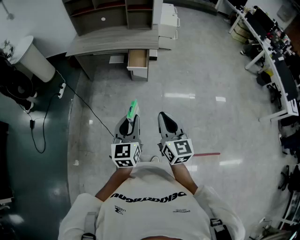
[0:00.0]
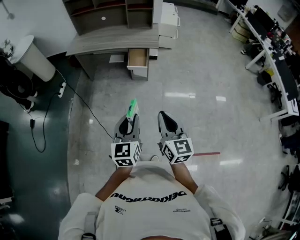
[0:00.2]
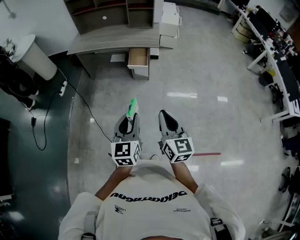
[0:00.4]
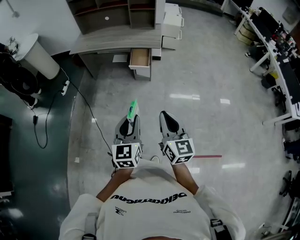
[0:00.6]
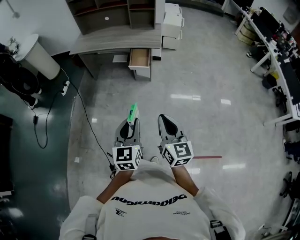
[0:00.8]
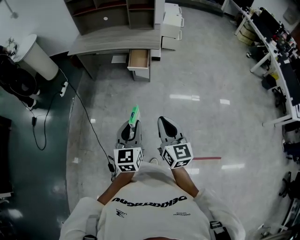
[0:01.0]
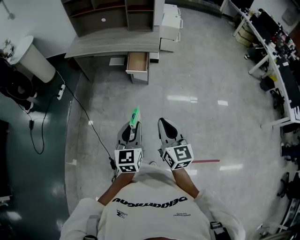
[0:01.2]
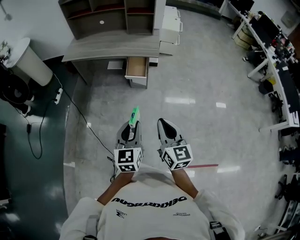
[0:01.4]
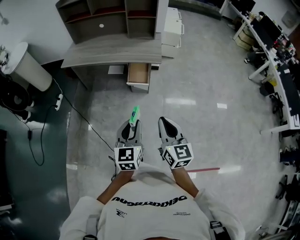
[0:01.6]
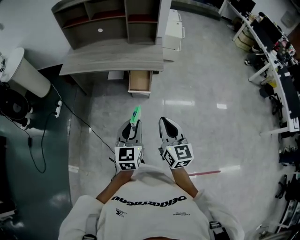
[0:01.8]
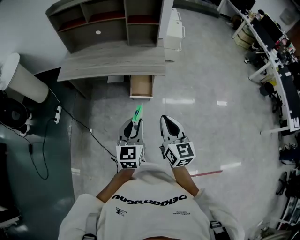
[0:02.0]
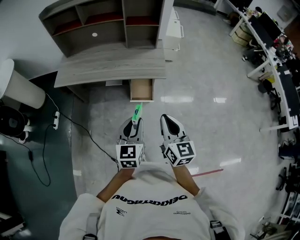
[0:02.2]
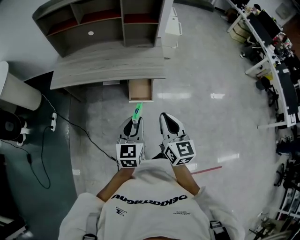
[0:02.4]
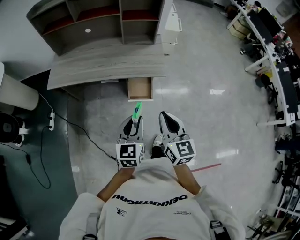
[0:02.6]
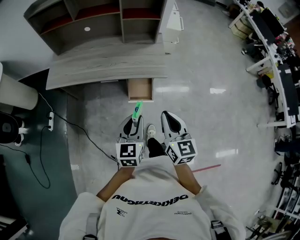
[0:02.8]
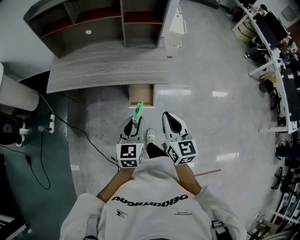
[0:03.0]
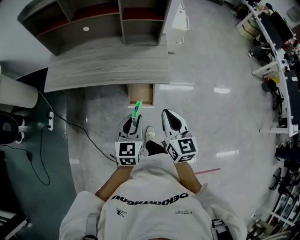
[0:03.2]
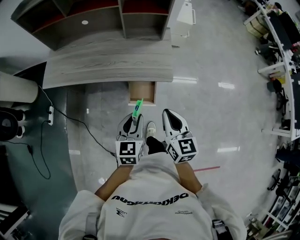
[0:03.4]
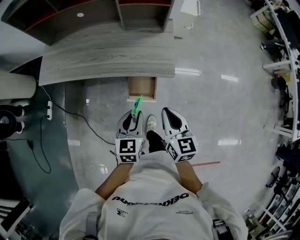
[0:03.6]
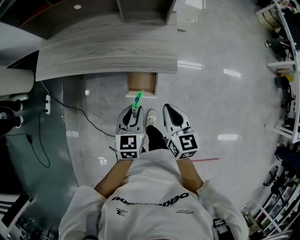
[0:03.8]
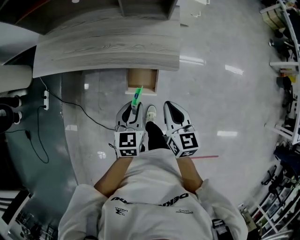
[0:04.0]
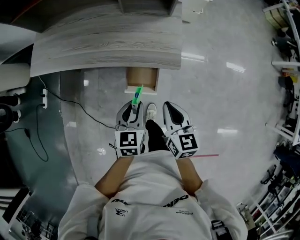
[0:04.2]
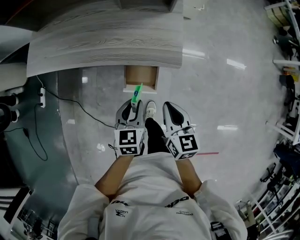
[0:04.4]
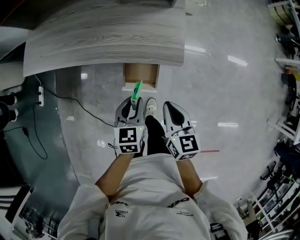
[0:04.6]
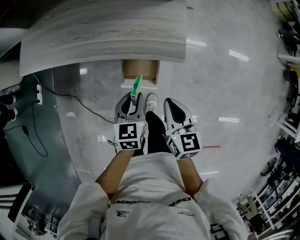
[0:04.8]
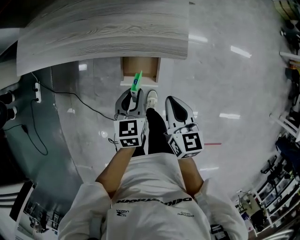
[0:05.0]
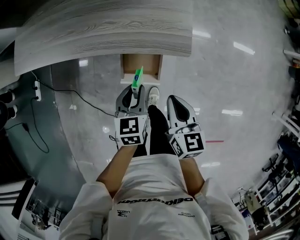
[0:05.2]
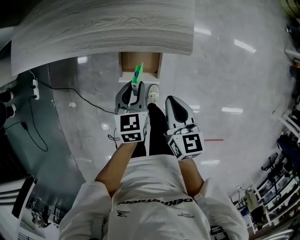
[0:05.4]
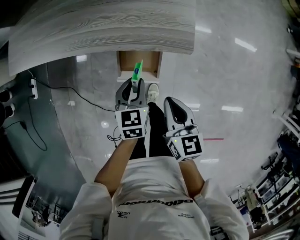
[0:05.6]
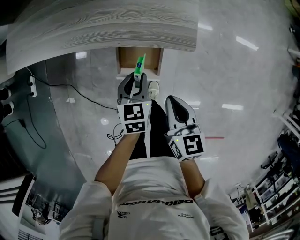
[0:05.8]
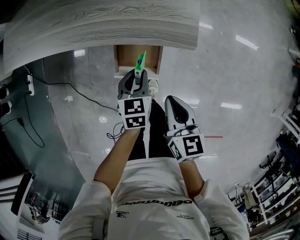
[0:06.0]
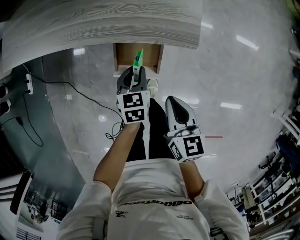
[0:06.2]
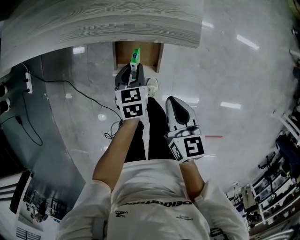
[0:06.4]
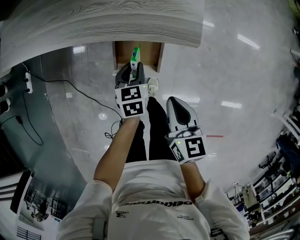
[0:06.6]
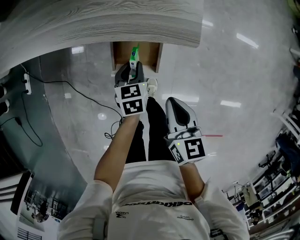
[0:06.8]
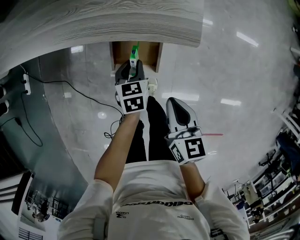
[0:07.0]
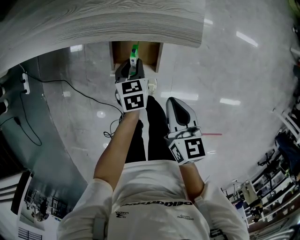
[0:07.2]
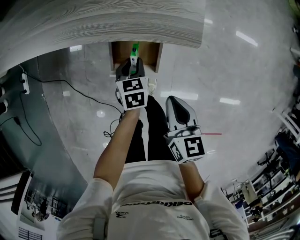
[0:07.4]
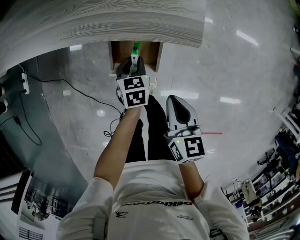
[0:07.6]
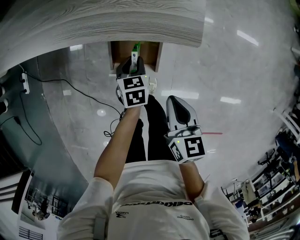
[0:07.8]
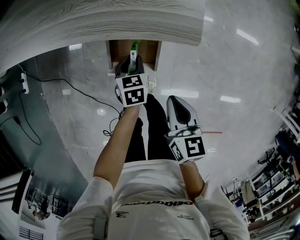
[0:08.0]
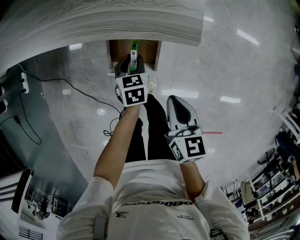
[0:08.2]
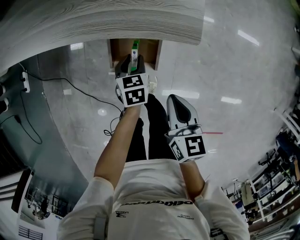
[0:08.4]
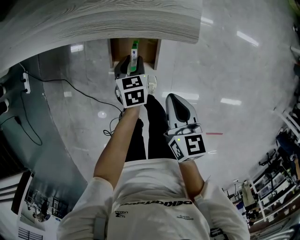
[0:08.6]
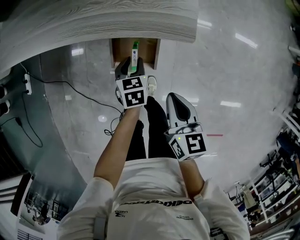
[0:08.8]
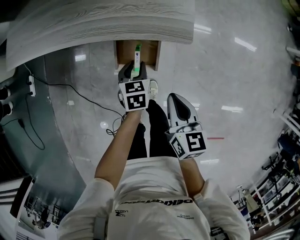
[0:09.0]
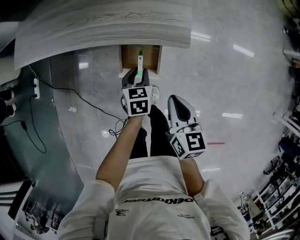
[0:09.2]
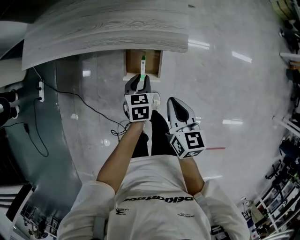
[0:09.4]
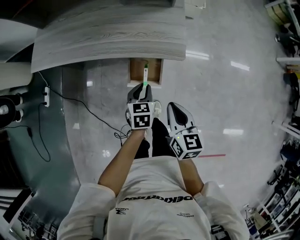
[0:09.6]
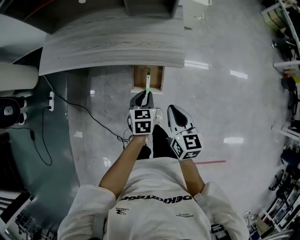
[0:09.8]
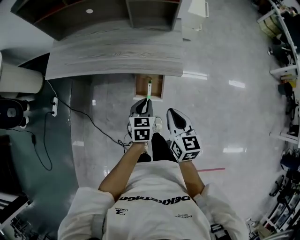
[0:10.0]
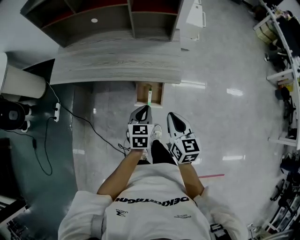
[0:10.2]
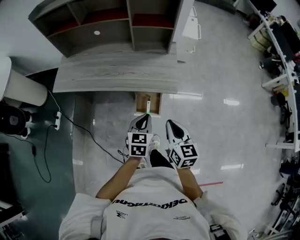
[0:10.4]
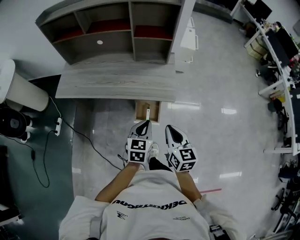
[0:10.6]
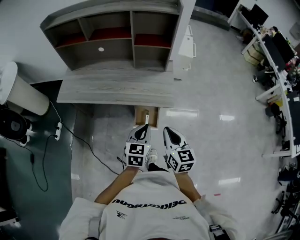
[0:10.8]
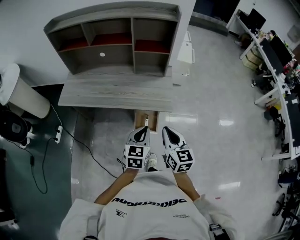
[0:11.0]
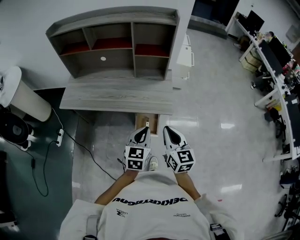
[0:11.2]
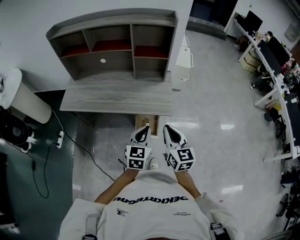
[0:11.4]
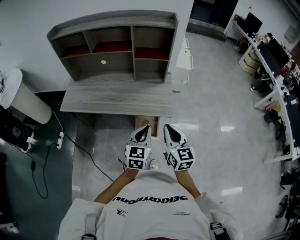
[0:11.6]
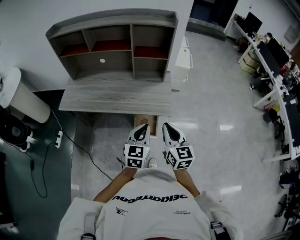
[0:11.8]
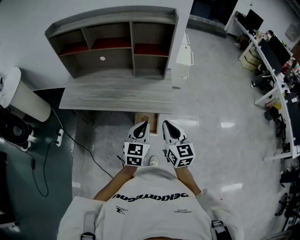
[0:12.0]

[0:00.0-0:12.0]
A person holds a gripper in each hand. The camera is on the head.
0.0 to 1.6 s: The two grippers go approximately 20 cm forward.
1.6 to 3.0 s: Both grippers travel together forward, roughly 35 cm.
3.0 to 4.4 s: Both grippers travel together downward and forward, approximately 20 cm.
4.4 to 6.0 s: The grippers both shift downward by approximately 15 cm.
6.0 to 7.6 s: The left gripper goes approximately 10 cm downward.
7.6 to 9.0 s: The left gripper travels upward by approximately 5 cm.
9.0 to 10.4 s: Both grippers travel together upward, approximately 30 cm. The left gripper turns by some 20 degrees, and closes its fingers.
10.4 to 12.0 s: Both grippers travel together upward, some 10 cm.

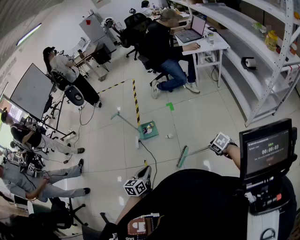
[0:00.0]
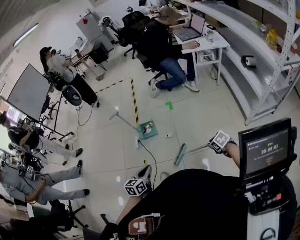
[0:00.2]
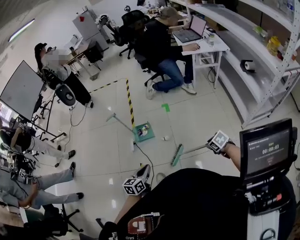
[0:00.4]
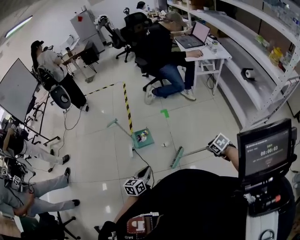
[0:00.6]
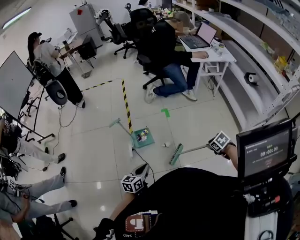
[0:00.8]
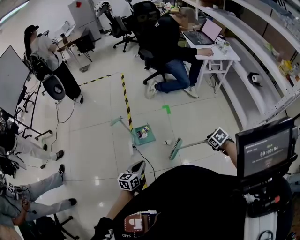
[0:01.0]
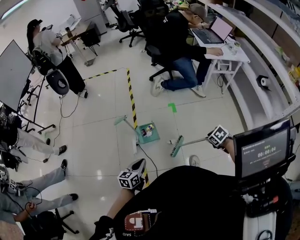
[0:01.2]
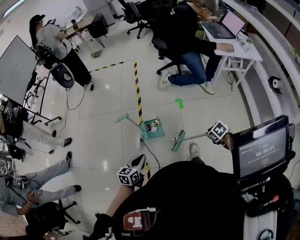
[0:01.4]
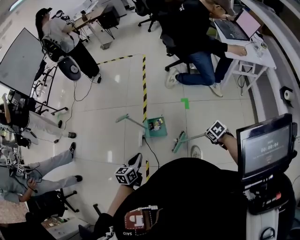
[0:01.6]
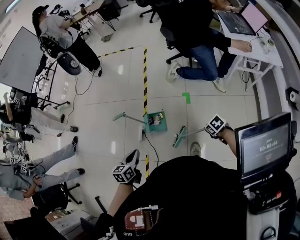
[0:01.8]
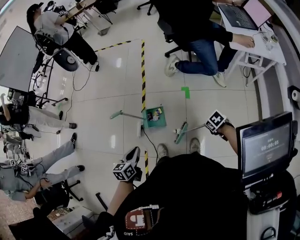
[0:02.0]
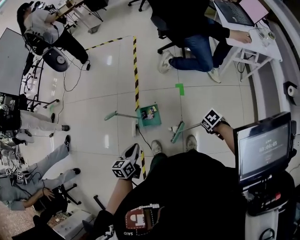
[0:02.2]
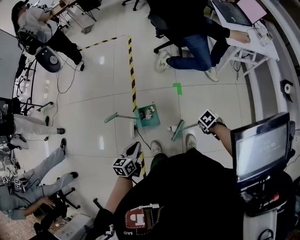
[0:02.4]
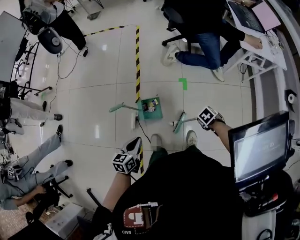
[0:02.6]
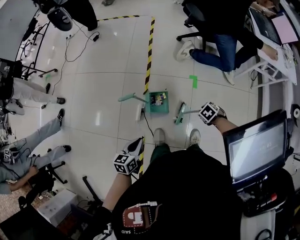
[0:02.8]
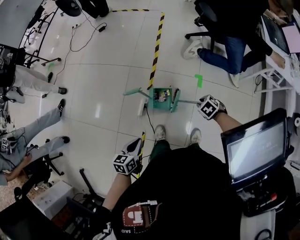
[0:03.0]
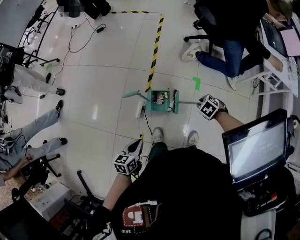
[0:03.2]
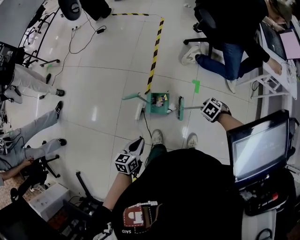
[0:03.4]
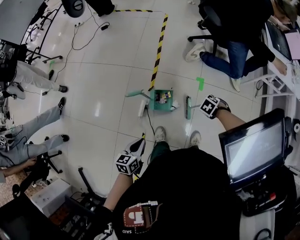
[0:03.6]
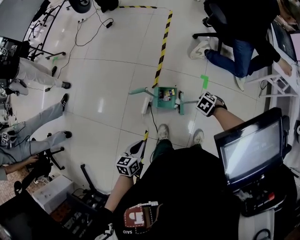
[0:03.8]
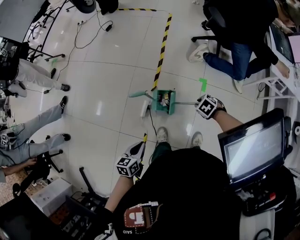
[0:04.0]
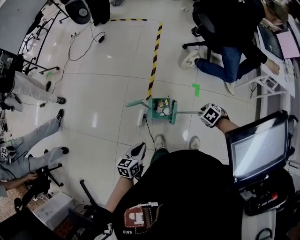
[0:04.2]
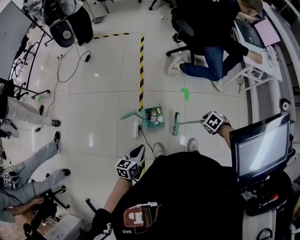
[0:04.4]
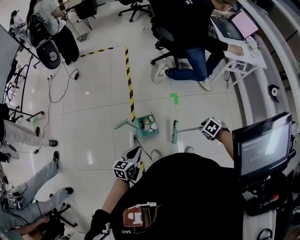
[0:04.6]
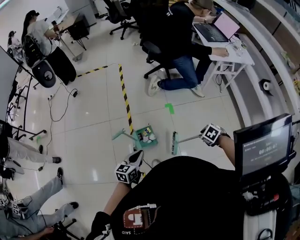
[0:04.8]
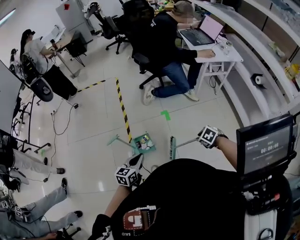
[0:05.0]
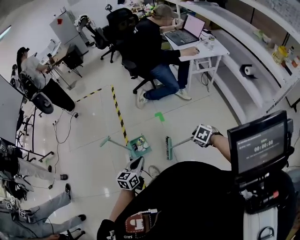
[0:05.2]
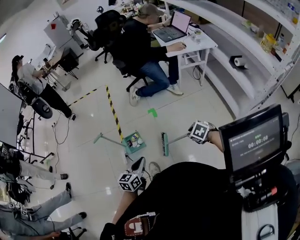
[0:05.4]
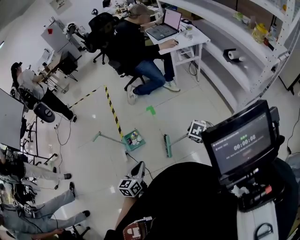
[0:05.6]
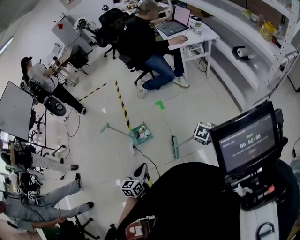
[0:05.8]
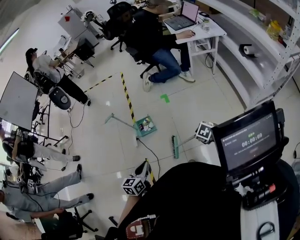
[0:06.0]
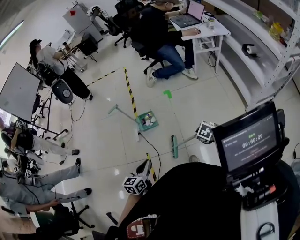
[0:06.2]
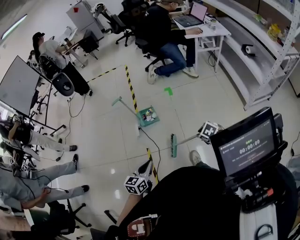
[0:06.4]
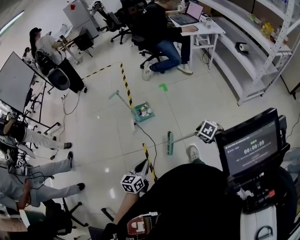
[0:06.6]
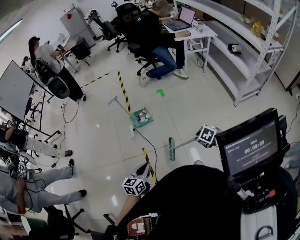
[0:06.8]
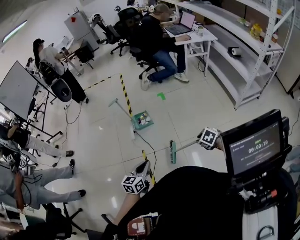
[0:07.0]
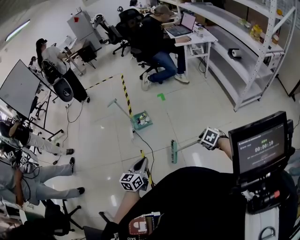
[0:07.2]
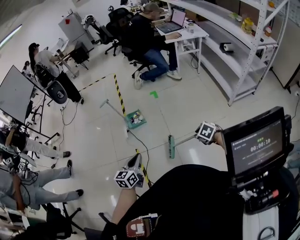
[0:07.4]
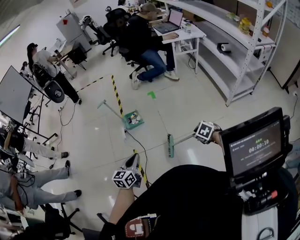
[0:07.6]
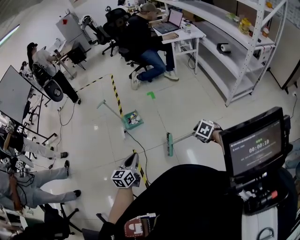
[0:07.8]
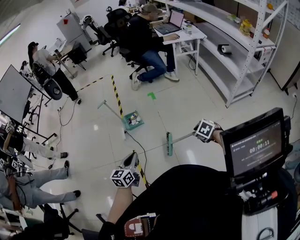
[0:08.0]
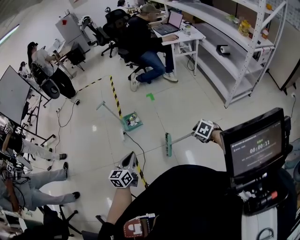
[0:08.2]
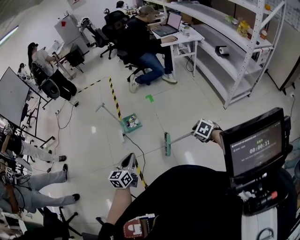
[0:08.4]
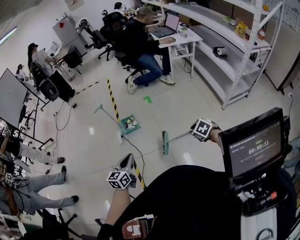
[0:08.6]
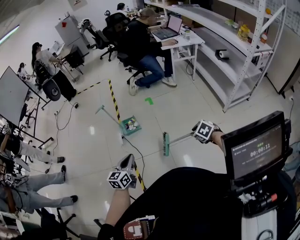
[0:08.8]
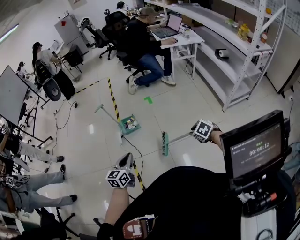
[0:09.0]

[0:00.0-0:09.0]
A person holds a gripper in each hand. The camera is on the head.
0.0 to 1.6 s: The left gripper changes place by roughly 40 cm.
1.6 to 3.0 s: The left gripper changes place by some 15 cm.
3.0 to 4.4 s: The left gripper shifts by roughly 5 cm.
4.4 to 6.0 s: The left gripper ends up roughly 40 cm from where it was.
6.0 to 7.6 s: The left gripper moves roughly 20 cm.
7.6 to 9.0 s: The left gripper moves about 5 cm.

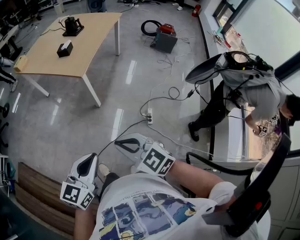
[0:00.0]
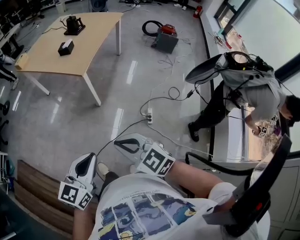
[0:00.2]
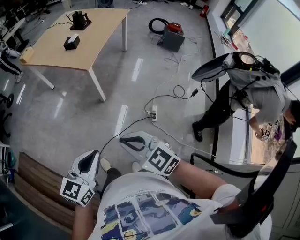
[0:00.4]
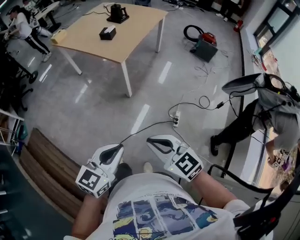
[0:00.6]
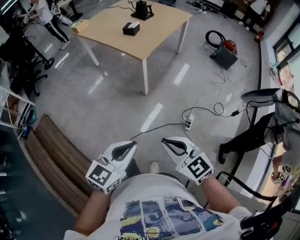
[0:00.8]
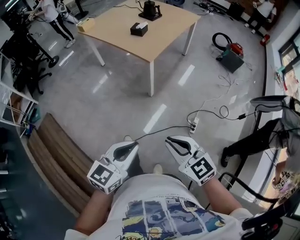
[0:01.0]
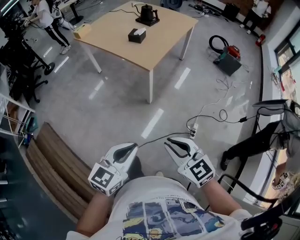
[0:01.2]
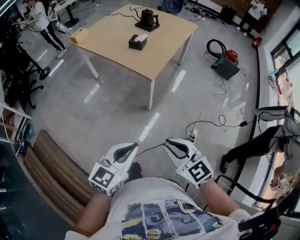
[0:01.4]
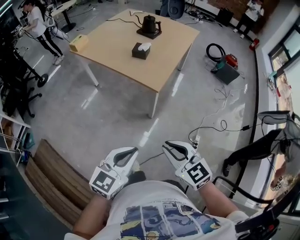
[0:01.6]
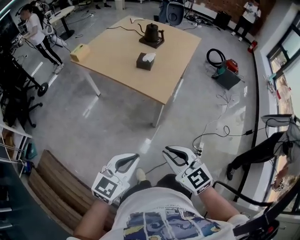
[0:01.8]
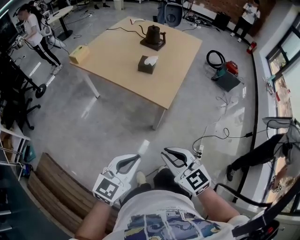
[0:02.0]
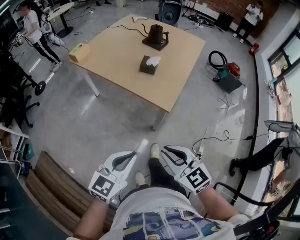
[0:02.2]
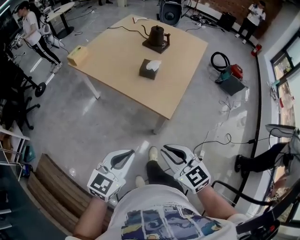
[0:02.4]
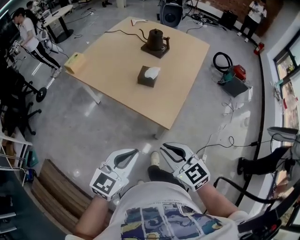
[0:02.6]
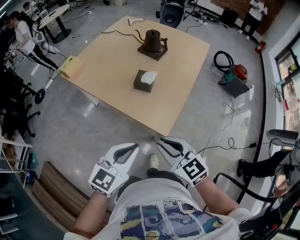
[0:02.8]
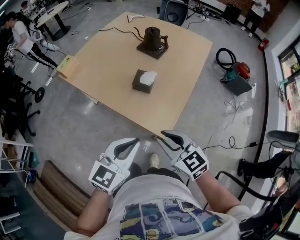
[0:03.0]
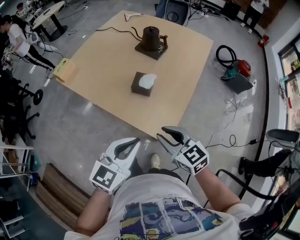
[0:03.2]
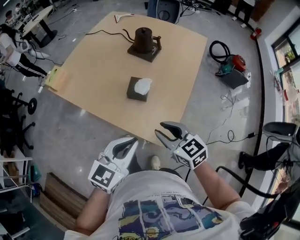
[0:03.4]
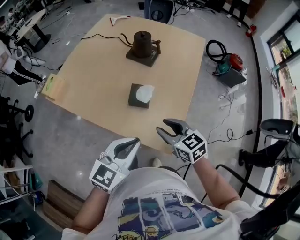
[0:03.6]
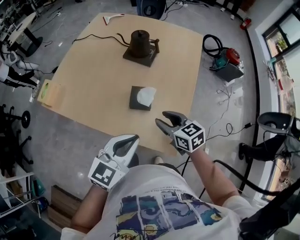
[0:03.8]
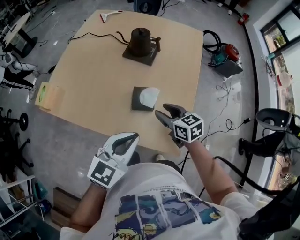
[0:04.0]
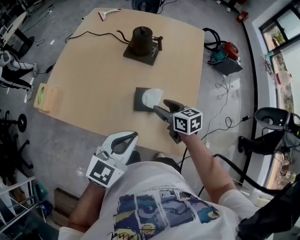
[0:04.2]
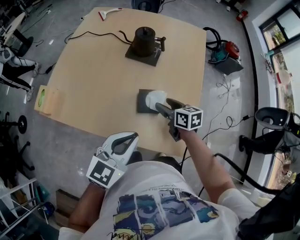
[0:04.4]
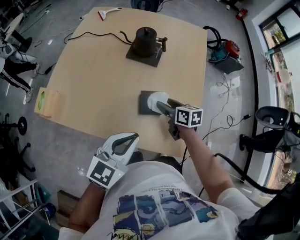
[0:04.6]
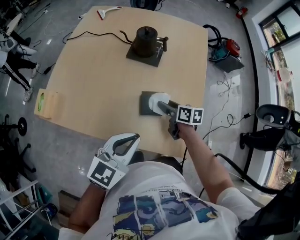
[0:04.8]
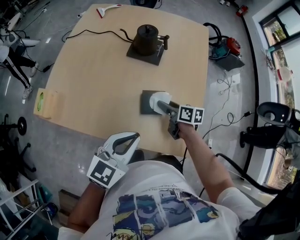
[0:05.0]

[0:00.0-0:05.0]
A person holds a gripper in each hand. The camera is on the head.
0.0 to 1.6 s: The two grippers go about 25 cm forward and to the left.
1.6 to 3.4 s: The pair of grippers is taken forward, roughly 50 cm.
3.4 to 5.0 s: The right gripper goes approximately 30 cm forward and downward, rolls clockwise, seen from behind, by some 50 degrees, and opens its fingers; the left gripper shifts roughly 20 cm forward and to the left.
